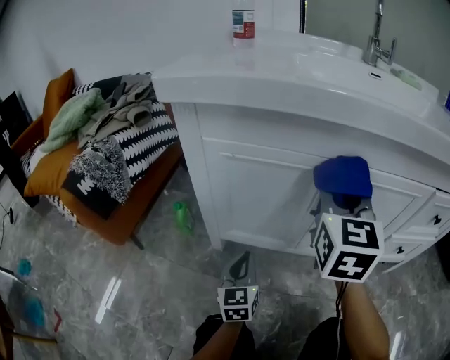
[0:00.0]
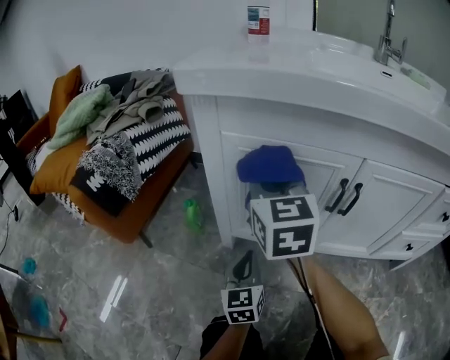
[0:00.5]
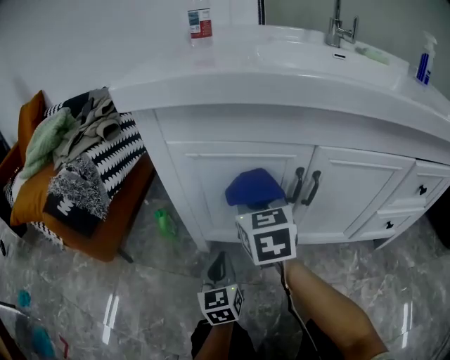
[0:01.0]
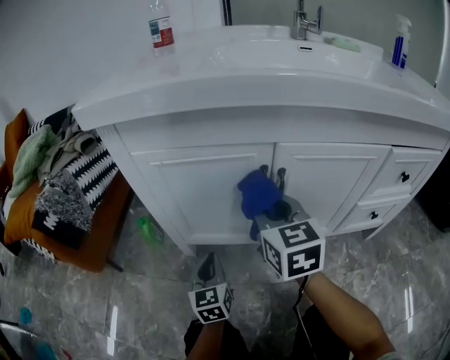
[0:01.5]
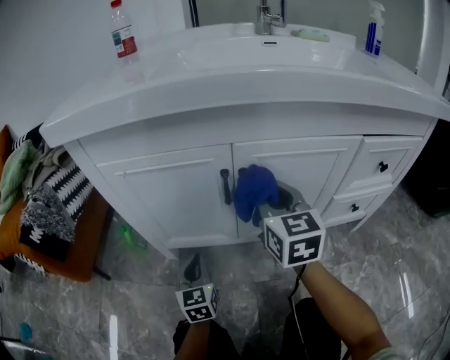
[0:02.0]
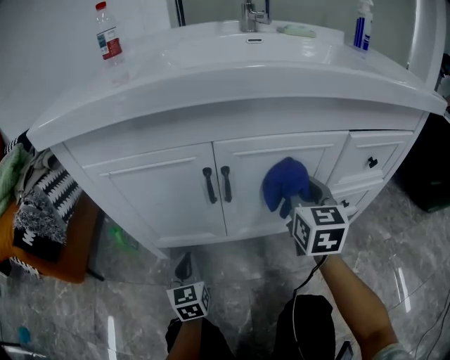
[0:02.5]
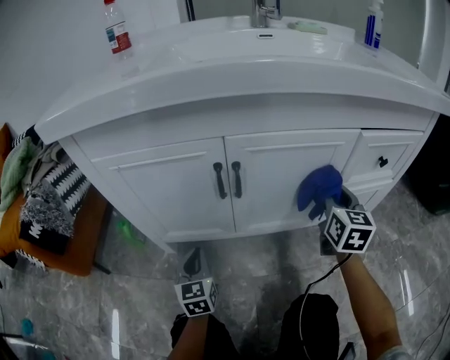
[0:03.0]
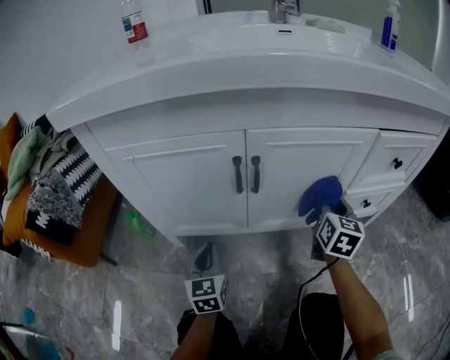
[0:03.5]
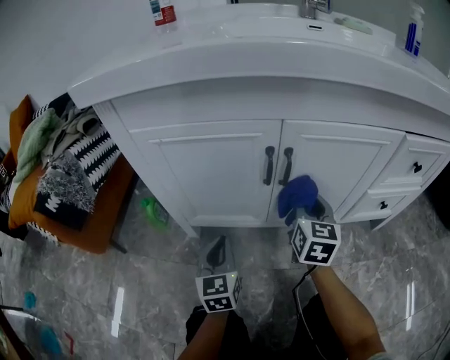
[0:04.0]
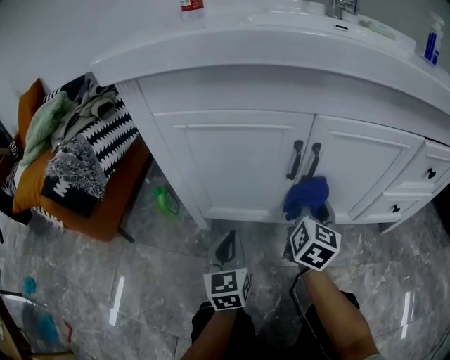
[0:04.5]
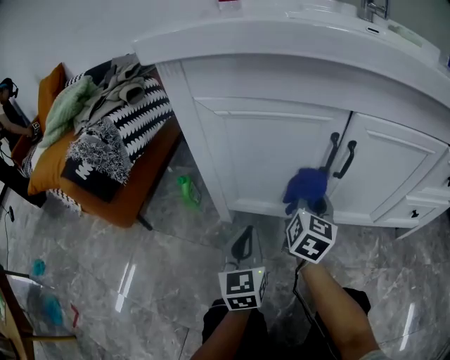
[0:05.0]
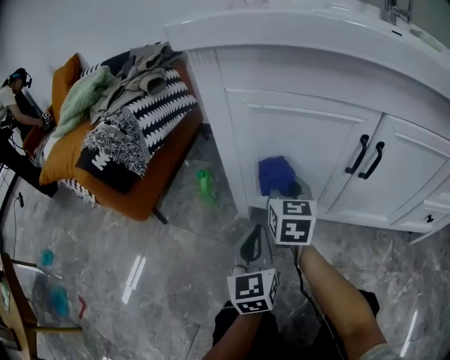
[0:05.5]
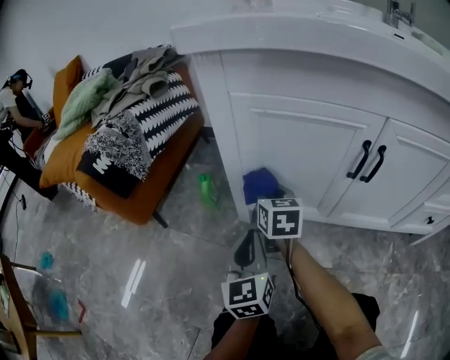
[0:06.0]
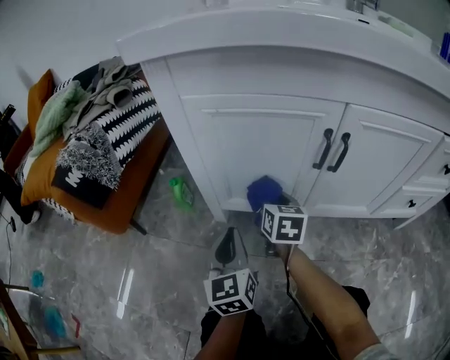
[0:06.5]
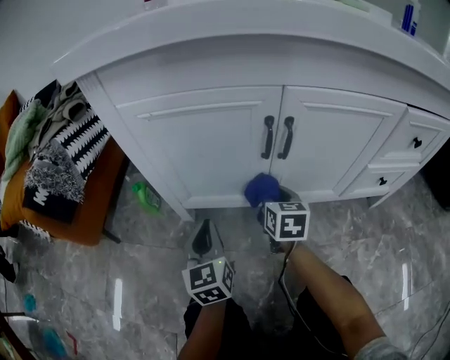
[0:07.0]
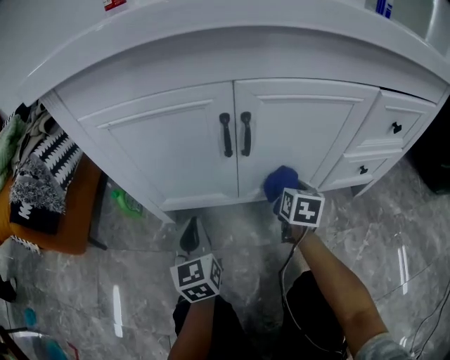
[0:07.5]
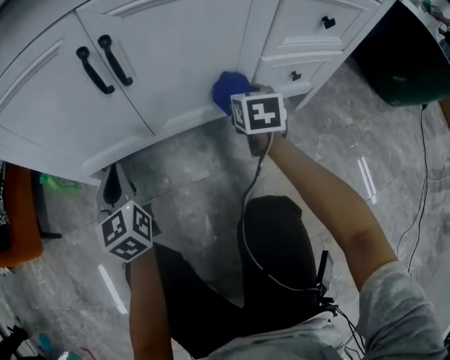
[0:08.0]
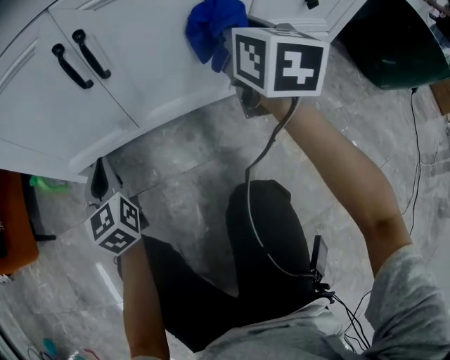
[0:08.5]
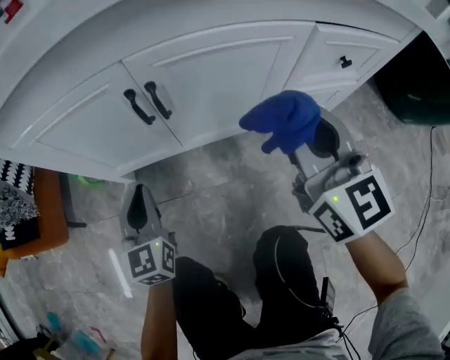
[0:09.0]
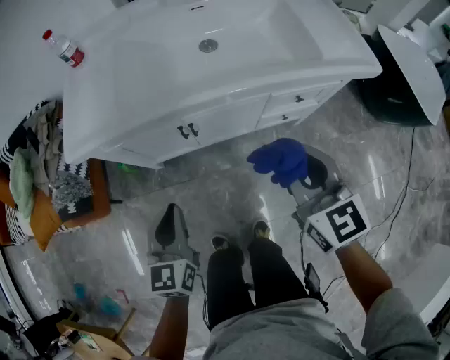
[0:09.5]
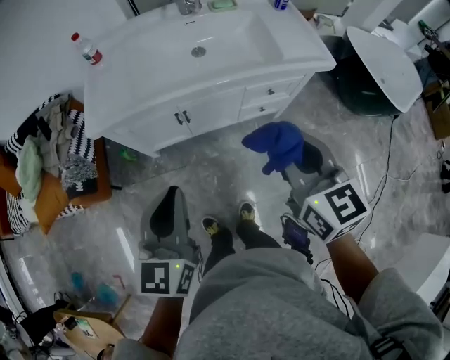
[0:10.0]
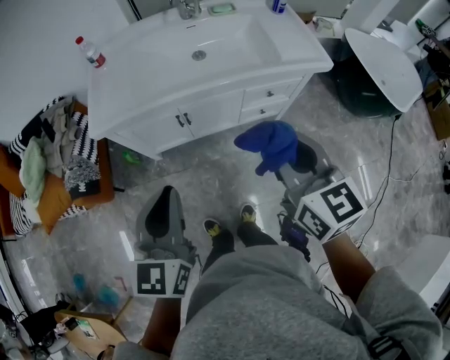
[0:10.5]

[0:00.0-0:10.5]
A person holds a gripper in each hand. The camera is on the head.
0:00.0 to 0:02.0: The right gripper moves downward, roughly 10 cm, and moves approximately 20 cm to the left and comes back.
0:02.0 to 0:04.0: The right gripper is displaced downward by some 10 cm, and moves roughly 20 cm to the right and comes back.
0:04.0 to 0:06.5: The left gripper shifts approximately 10 cm to the left. The right gripper goes some 25 cm to the left and downward, and rotates about 20 degrees.
0:06.5 to 0:08.5: The left gripper goes about 15 cm to the right, while the right gripper moves to the right and upward, some 40 cm, and swivels roughly 20 degrees.
0:08.5 to 0:10.5: The right gripper shifts roughly 60 cm upward and backward; the left gripper goes some 70 cm upward, and swivels roughly 20 degrees.

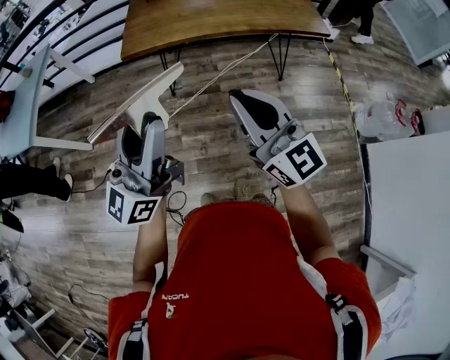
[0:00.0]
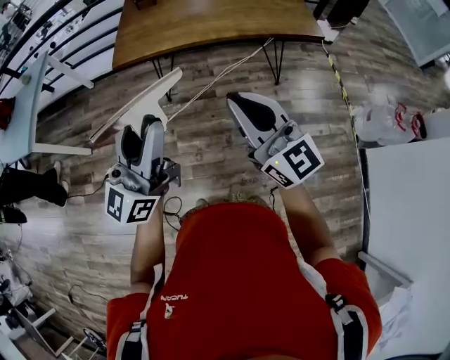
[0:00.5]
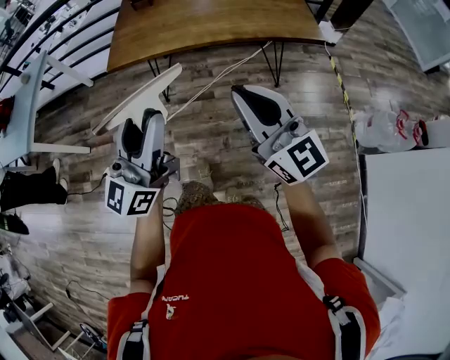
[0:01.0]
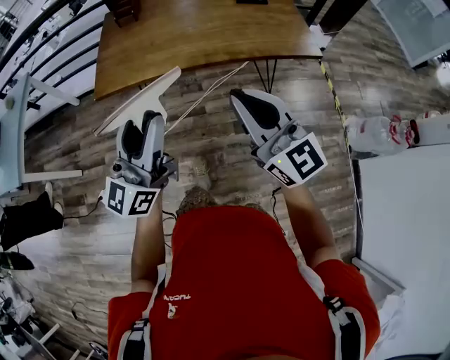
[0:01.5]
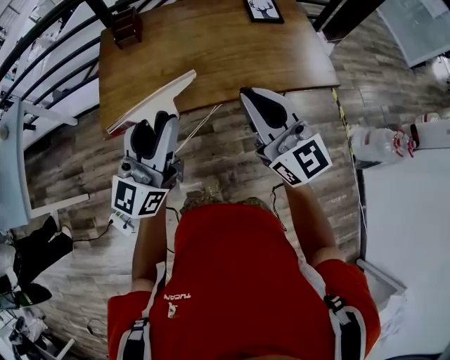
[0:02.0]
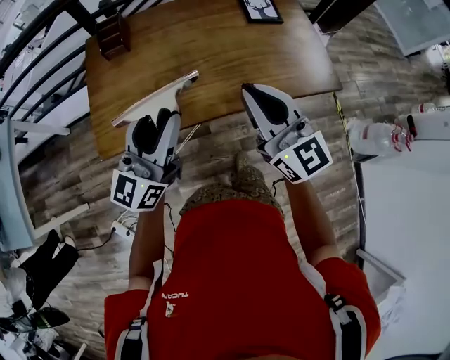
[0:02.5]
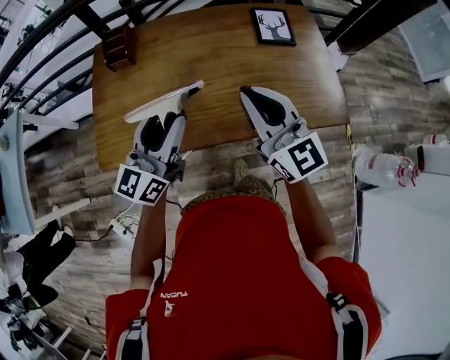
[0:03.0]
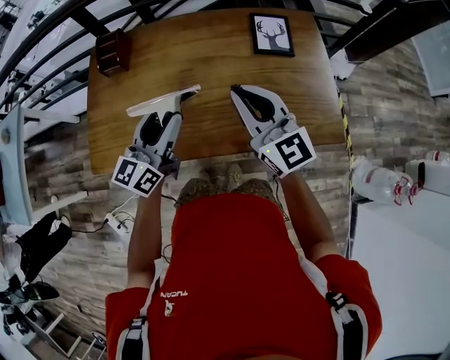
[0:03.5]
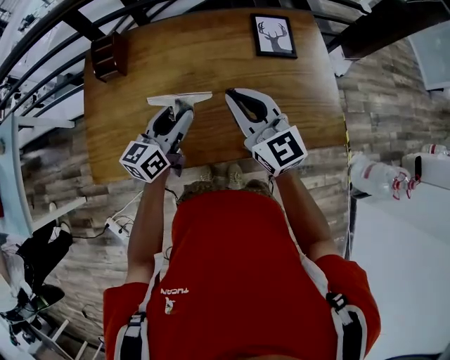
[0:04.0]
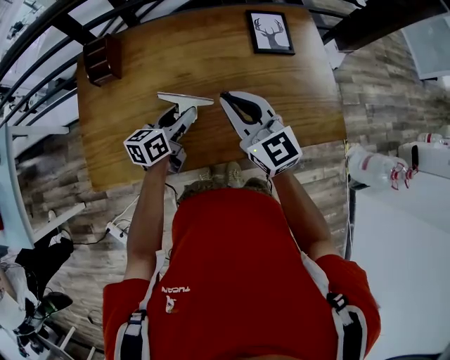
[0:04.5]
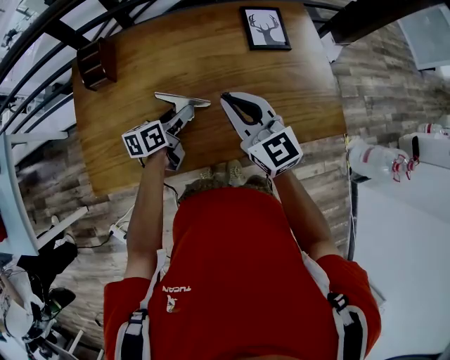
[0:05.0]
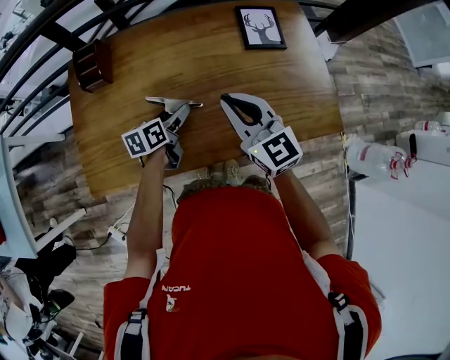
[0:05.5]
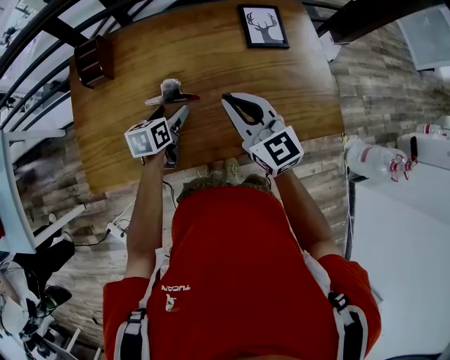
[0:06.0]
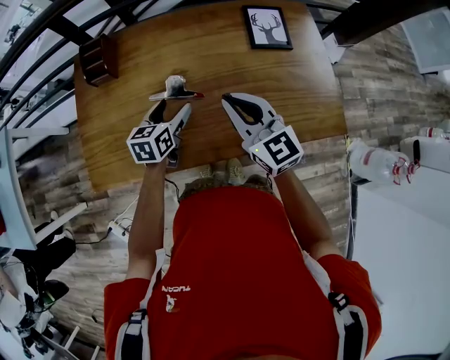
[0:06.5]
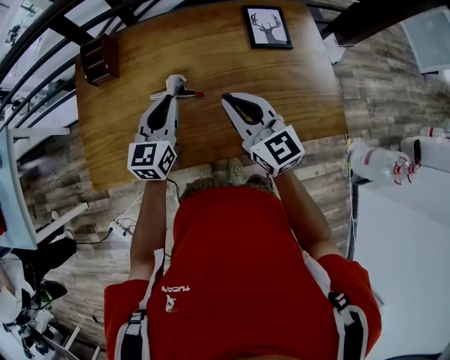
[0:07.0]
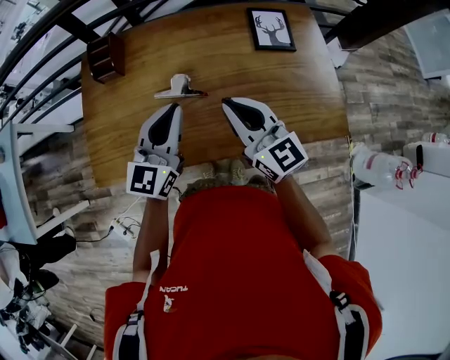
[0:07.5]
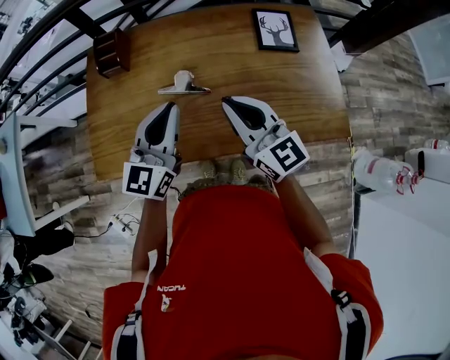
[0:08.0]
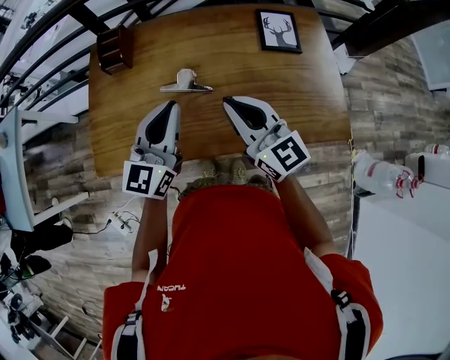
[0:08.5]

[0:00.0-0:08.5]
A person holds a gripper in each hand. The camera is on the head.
0:00.0 to 0:02.0: The two grippers go roughly 35 cm forward.
0:02.0 to 0:04.0: The left gripper travels forward and downward by approximately 35 cm, and rotates some 30 degrees; the right gripper travels forward by approximately 25 cm.
0:04.0 to 0:06.5: The left gripper is displaced downward by some 10 cm, turns by roughly 20 degrees, and opens its fingers.
0:06.5 to 0:08.5: The right gripper shifts by about 5 cm. The left gripper travels upward and backward by some 20 cm, tips its fingers upward by roughly 30 degrees, and closes its fingers.

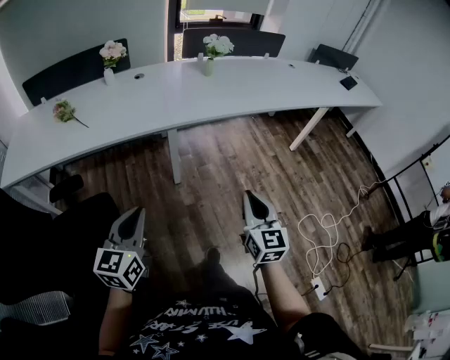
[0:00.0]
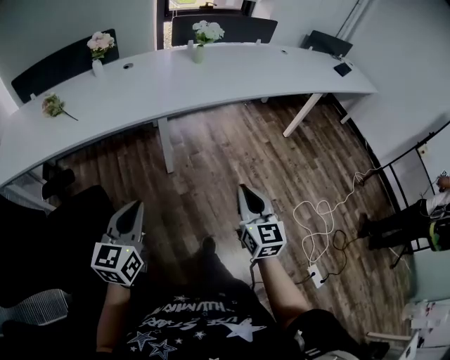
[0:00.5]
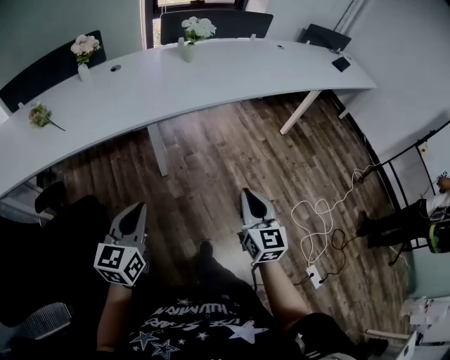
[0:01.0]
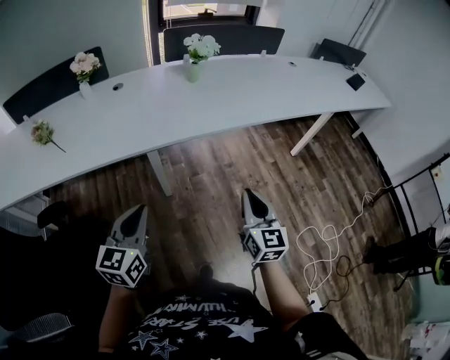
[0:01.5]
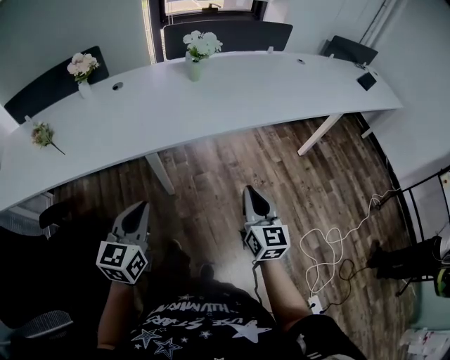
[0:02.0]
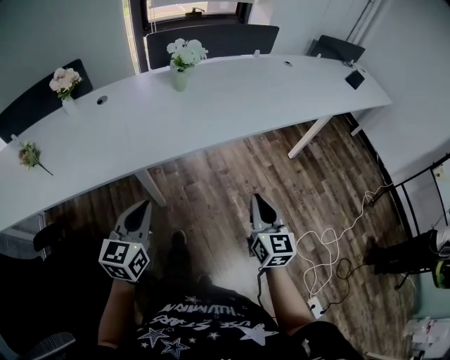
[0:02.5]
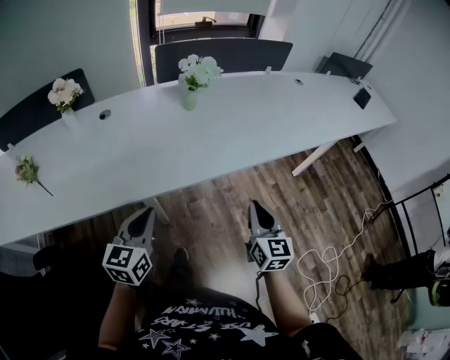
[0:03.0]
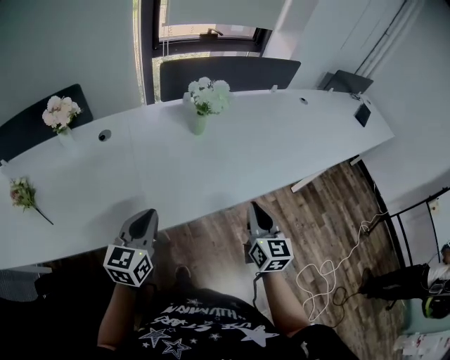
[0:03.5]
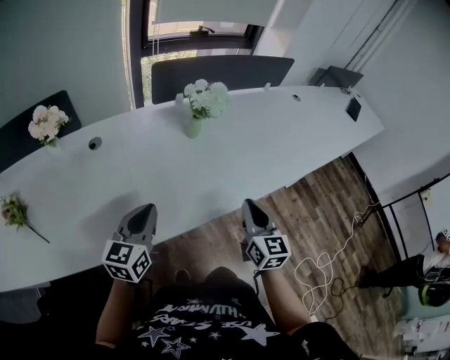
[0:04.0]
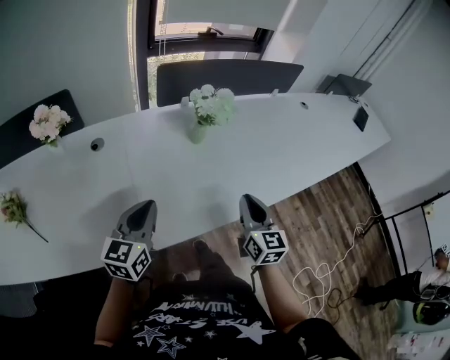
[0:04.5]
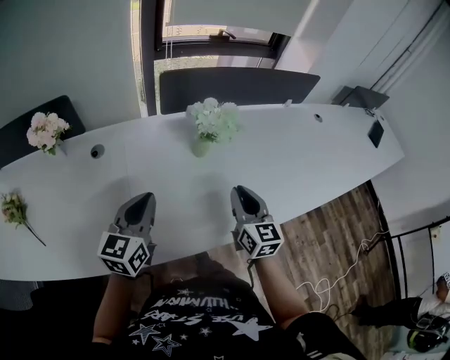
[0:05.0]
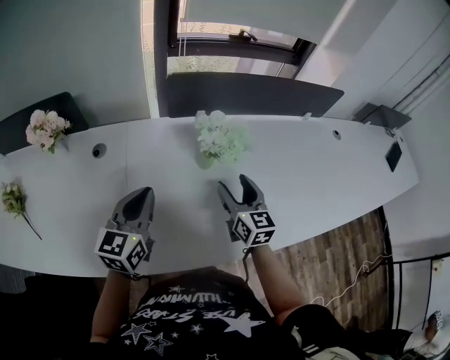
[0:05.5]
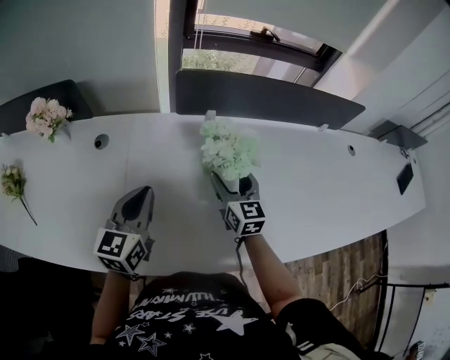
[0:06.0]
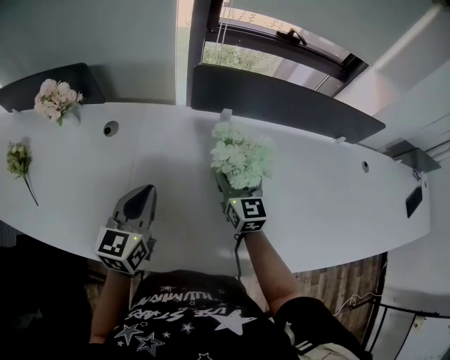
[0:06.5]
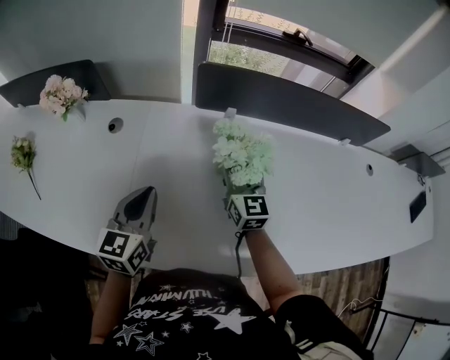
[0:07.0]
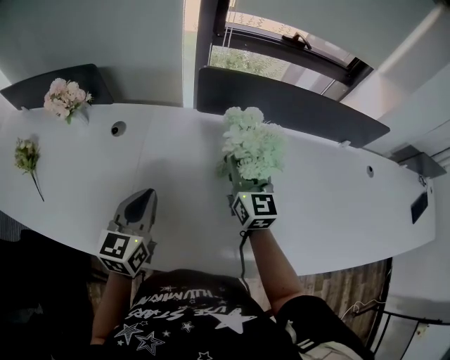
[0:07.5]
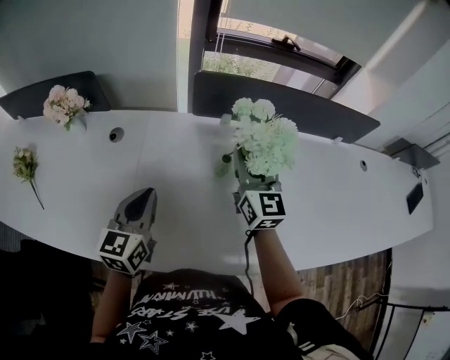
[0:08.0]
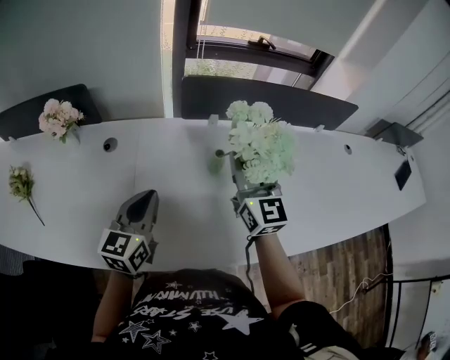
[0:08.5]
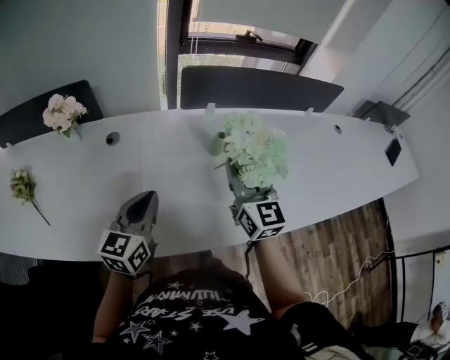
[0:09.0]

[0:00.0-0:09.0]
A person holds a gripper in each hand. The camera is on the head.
0:00.0 to 0:02.0: The two grippers go approximately 25 cm forward and to the right.
0:02.0 to 0:04.5: The grippers both shift forward by roughly 35 cm.
0:04.5 to 0:07.0: The right gripper moves some 35 cm, turns by some 30 degrees, and opens up; the left gripper ends up approximately 15 cm from where it was, and changes its angle by approximately 30 degrees.
0:07.0 to 0:09.0: The left gripper moves backward, about 10 cm. The right gripper goes about 20 cm backward and upward.
